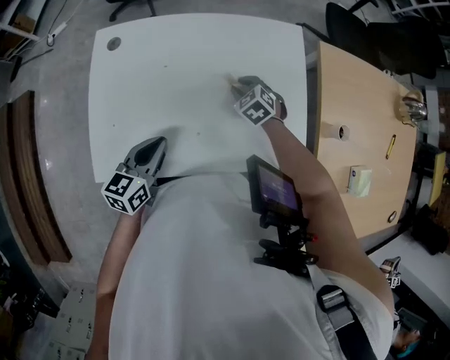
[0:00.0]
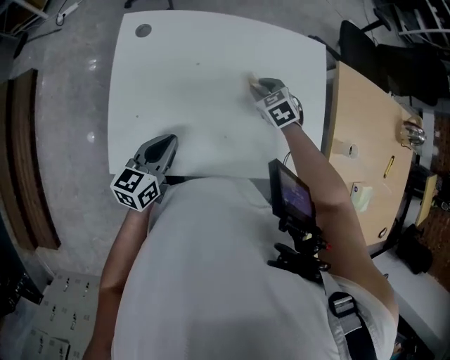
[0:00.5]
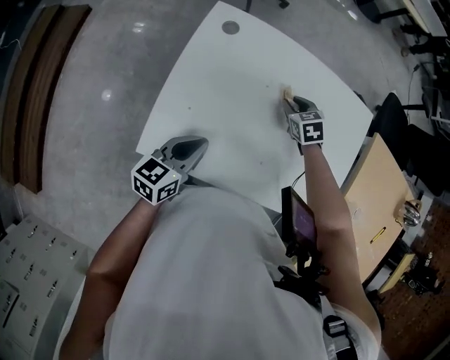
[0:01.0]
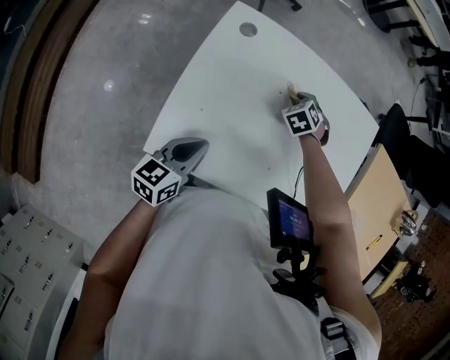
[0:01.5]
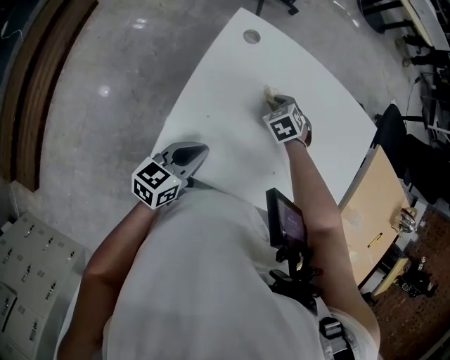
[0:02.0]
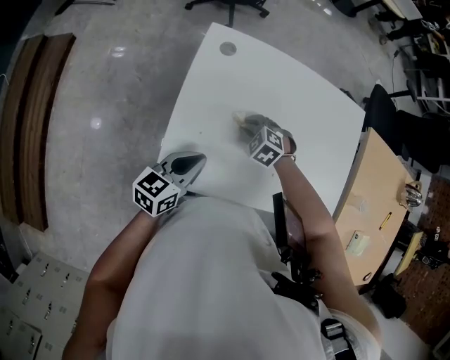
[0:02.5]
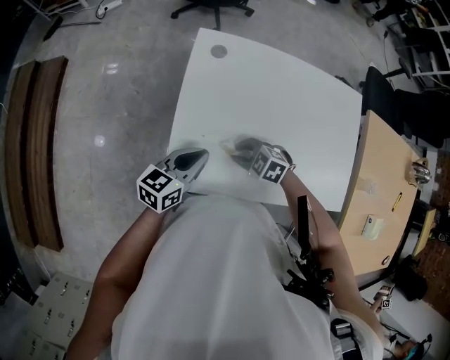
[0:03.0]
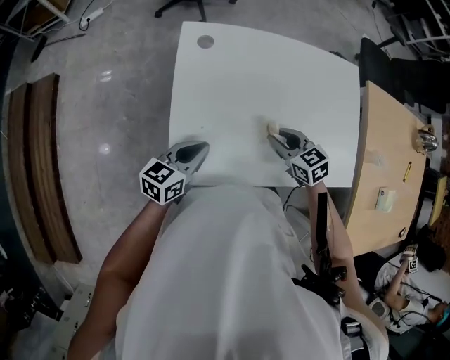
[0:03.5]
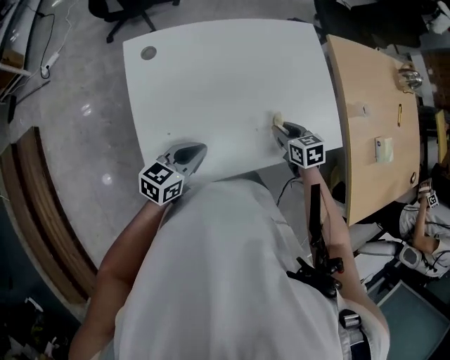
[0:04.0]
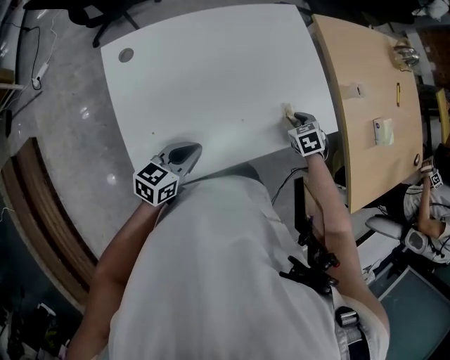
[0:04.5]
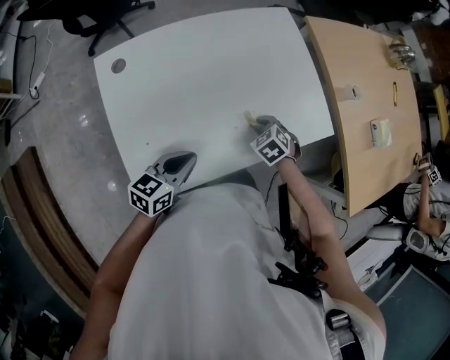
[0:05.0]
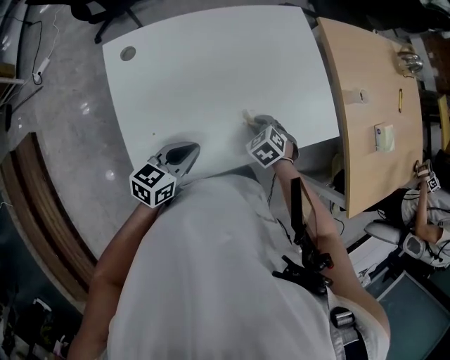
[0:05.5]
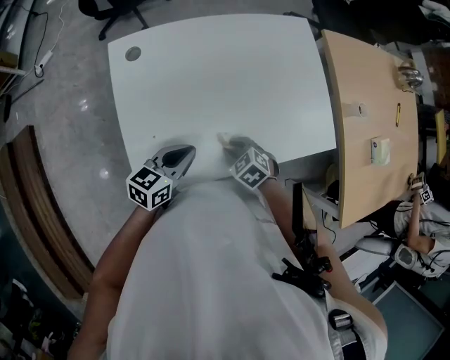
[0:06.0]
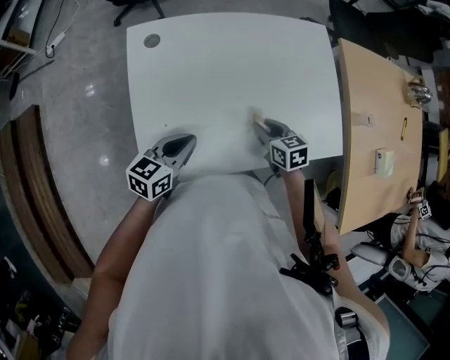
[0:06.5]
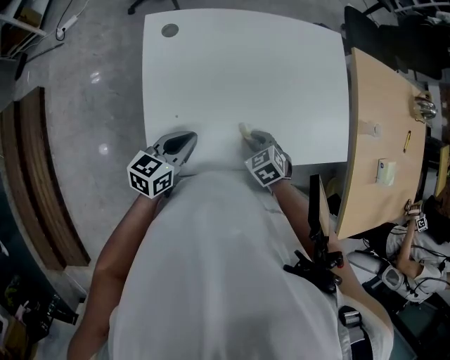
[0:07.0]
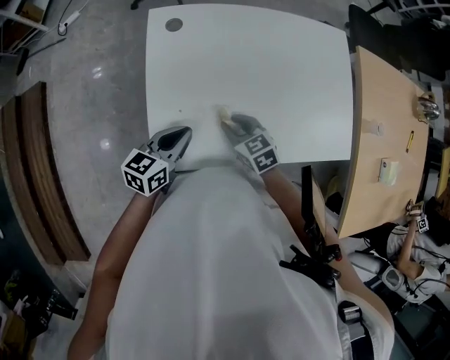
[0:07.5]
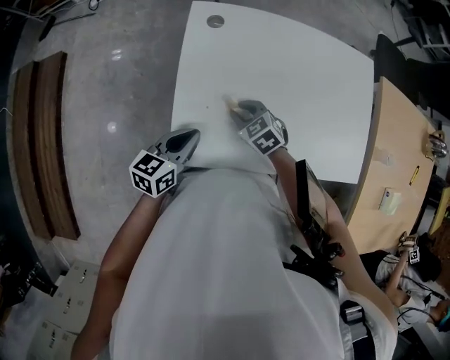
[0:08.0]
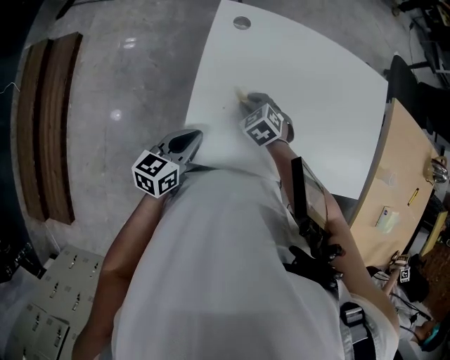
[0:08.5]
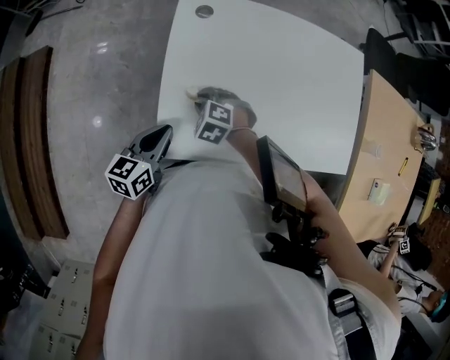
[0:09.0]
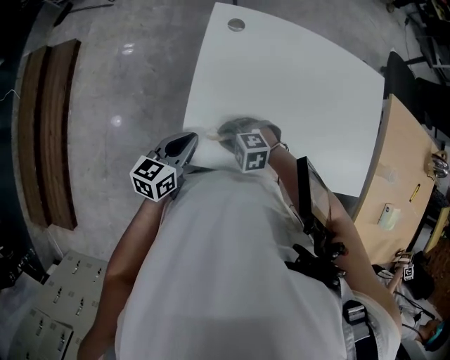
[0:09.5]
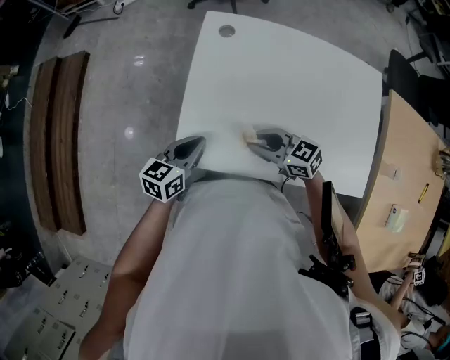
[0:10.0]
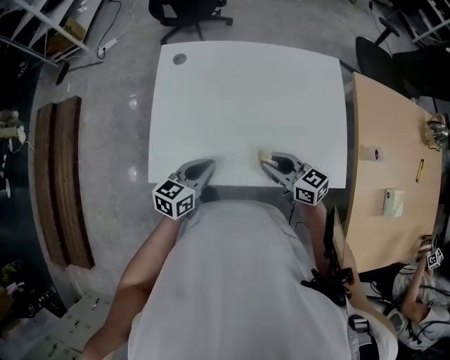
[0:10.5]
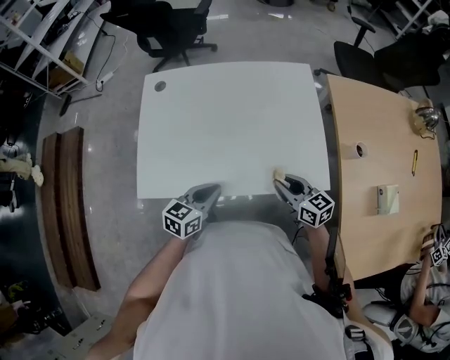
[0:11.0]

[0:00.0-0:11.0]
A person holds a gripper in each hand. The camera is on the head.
0:00.0 to 0:02.0: The left gripper heads to the left, covering about 15 cm. Meanwhile the right gripper goes approximately 25 cm to the left.
0:02.0 to 0:03.5: The right gripper ends up approximately 20 cm from where it was, and rotates approximately 40 degrees.
0:03.5 to 0:05.5: The right gripper turns by some 40 degrees. The left gripper changes place by about 10 cm, and swivels some 20 degrees.
0:05.5 to 0:07.5: The left gripper moves roughly 10 cm. Meanwhile the right gripper ends up approximately 20 cm from where it was, and swivels about 30 degrees.
0:07.5 to 0:09.0: The two grippers go some 10 cm to the left. The right gripper rolls counterclockwise, seen from behind, by roughly 40 degrees.
0:09.0 to 0:11.0: The right gripper changes place by roughly 40 cm, and tilts its fingers roughly 40 degrees upward; the left gripper changes place by about 30 cm.

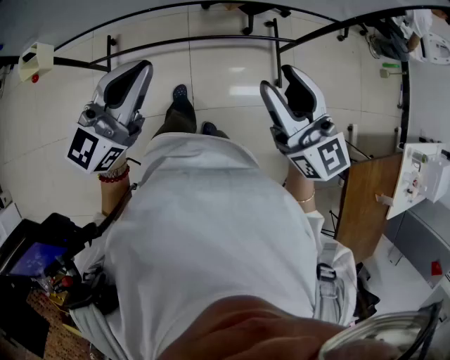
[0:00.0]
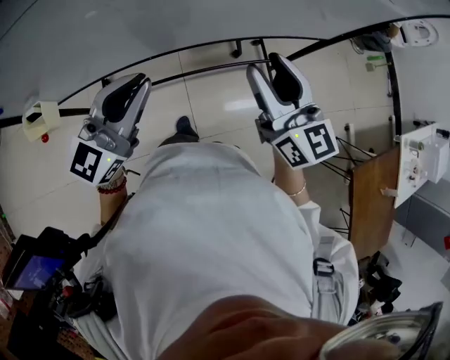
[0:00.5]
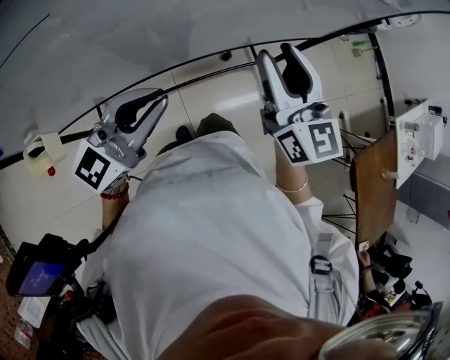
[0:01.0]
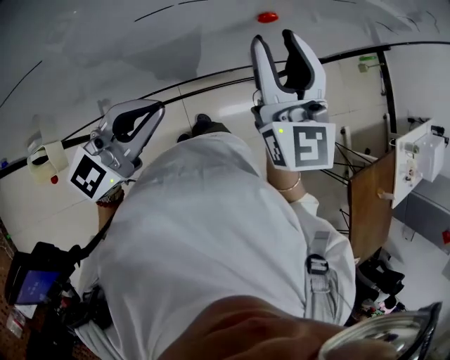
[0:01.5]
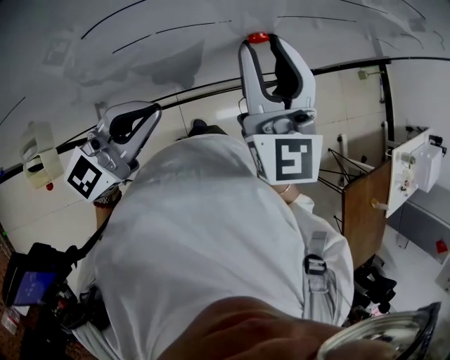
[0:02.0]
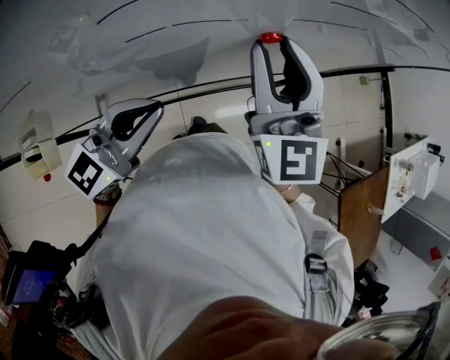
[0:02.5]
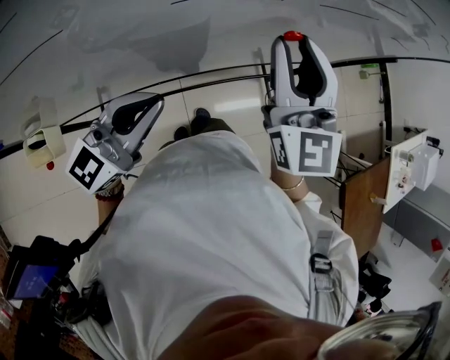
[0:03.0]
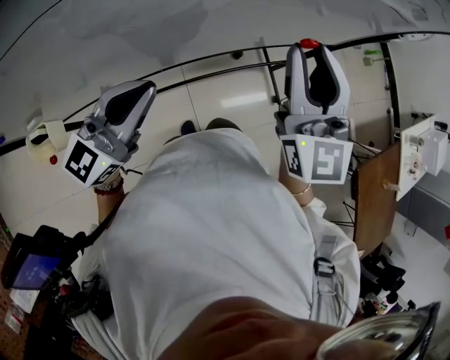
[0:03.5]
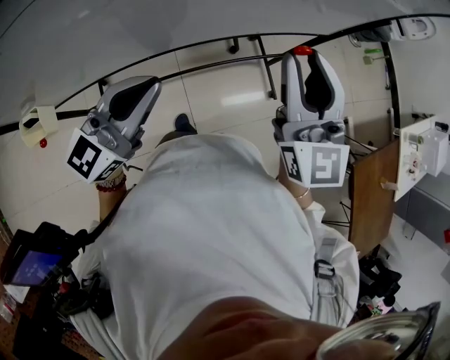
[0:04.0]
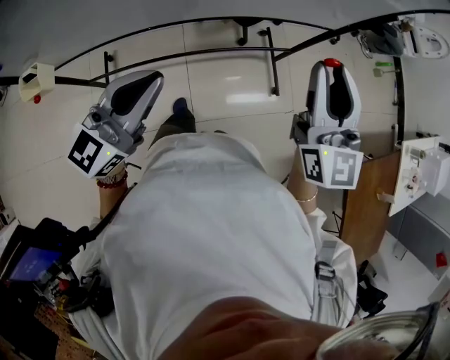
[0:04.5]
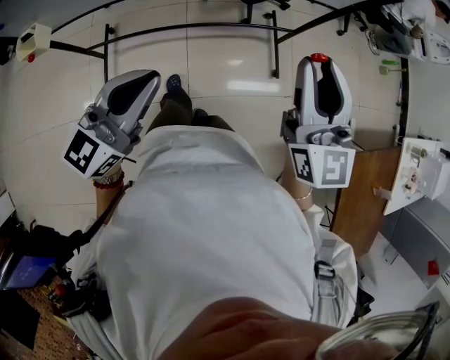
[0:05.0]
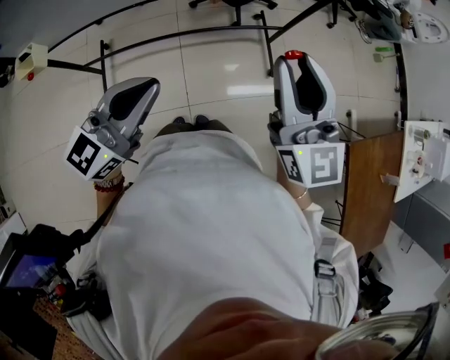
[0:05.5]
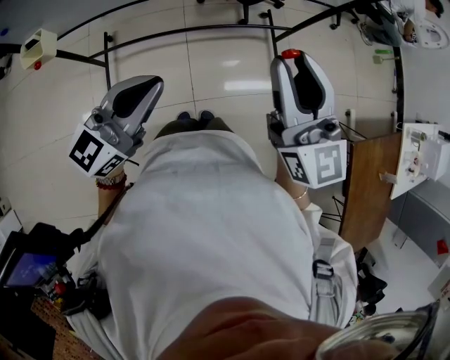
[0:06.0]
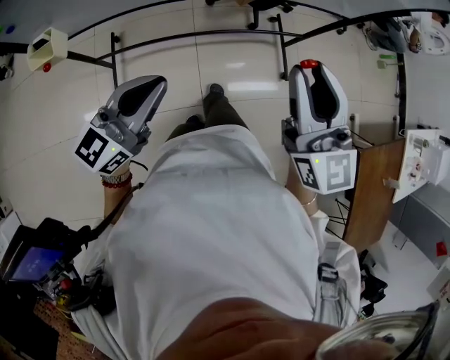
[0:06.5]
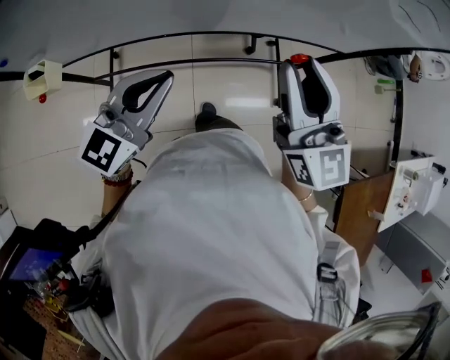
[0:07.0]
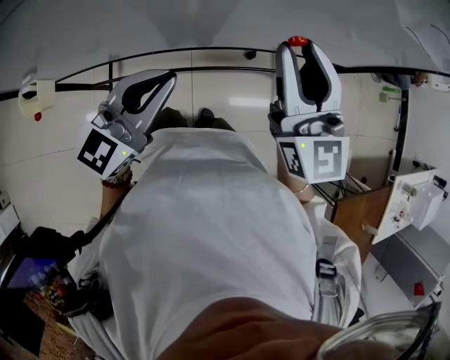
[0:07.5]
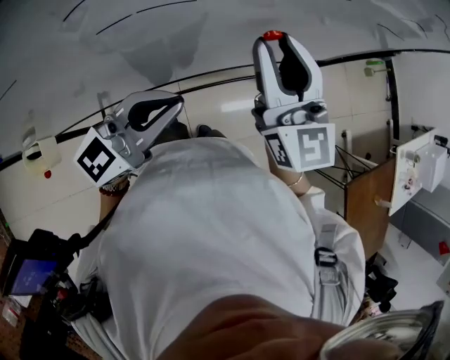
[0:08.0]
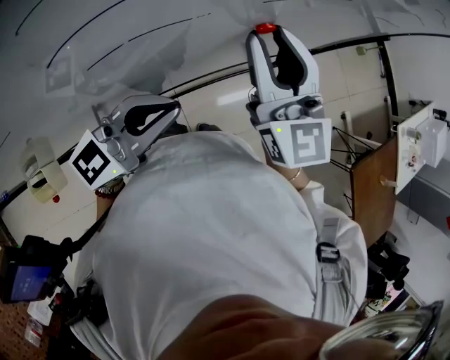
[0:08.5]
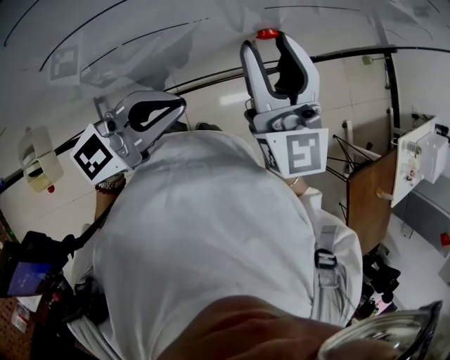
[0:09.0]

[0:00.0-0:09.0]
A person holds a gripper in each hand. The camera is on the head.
0:00.0 to 0:02.0: The right gripper heads forward, to the left and upward, covering some 25 cm, and changes its angle by some 30 degrees; the left gripper goes about 10 cm forward and to the left.
0:02.0 to 0:04.5: The left gripper shifts approximately 10 cm backward and to the right. Meanwhile the right gripper shifts about 20 cm to the right.
0:04.5 to 0:07.0: The right gripper travels to the left by roughly 10 cm, and moves some 15 cm backward and comes back; the left gripper moves about 10 cm backward and comes back.
0:07.0 to 0:09.0: Both grippers move forward, about 5 cm. The left gripper changes its angle by approximately 30 degrees.

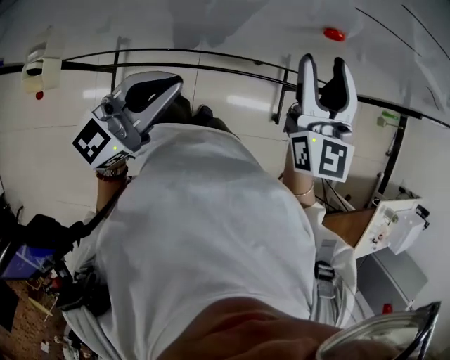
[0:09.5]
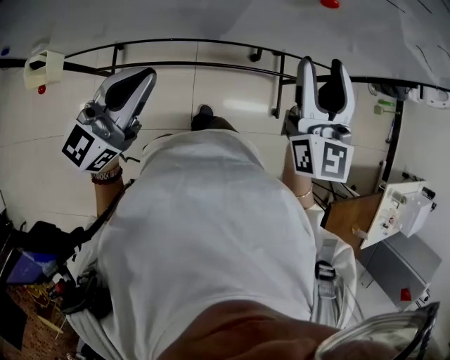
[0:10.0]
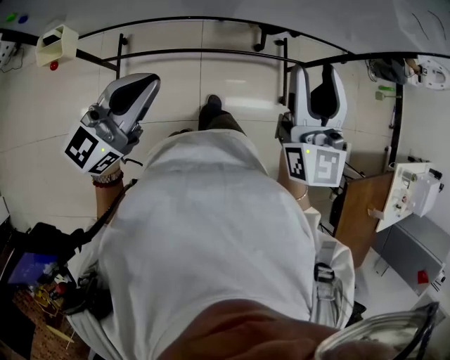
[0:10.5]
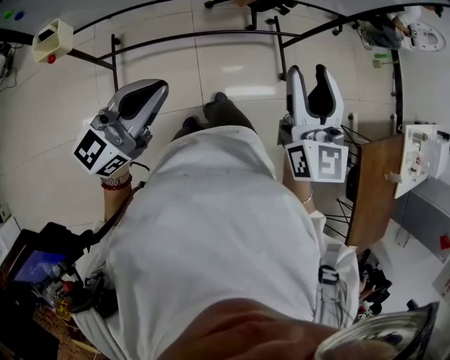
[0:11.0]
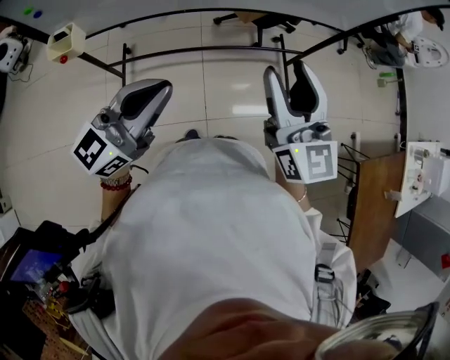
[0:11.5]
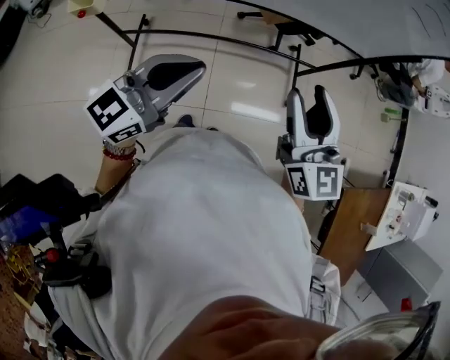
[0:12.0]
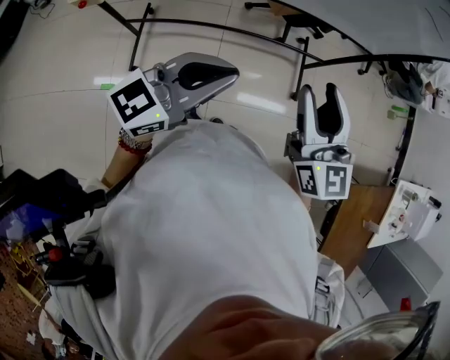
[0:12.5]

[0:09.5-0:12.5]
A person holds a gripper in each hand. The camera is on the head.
0:09.5 to 0:11.0: Both grippers travel together backward, some 25 cm.
0:11.0 to 0:12.5: The left gripper shifts some 15 cm to the right.

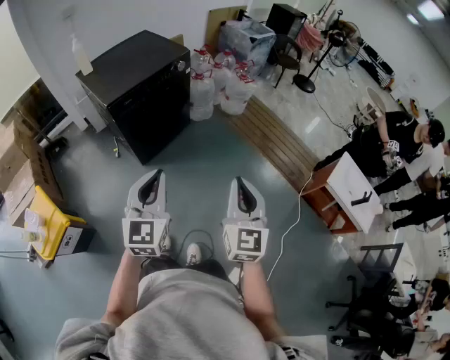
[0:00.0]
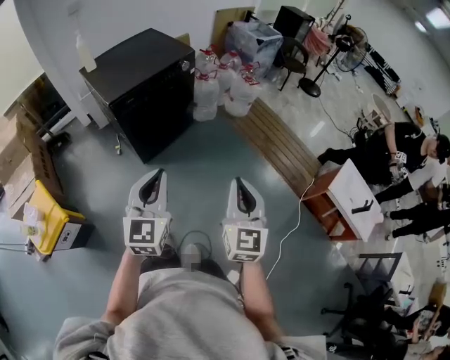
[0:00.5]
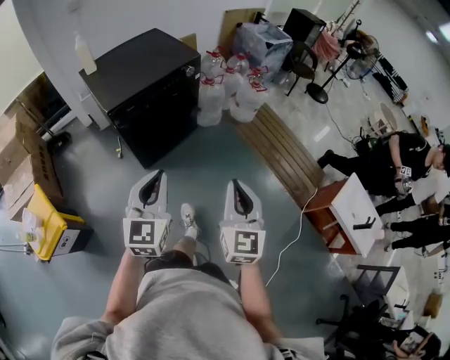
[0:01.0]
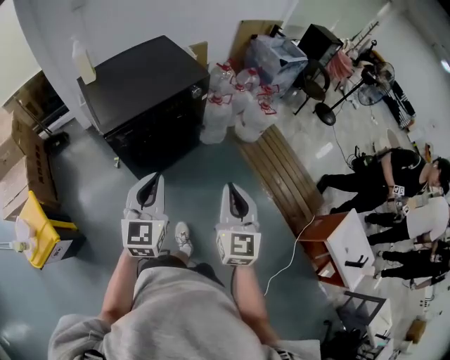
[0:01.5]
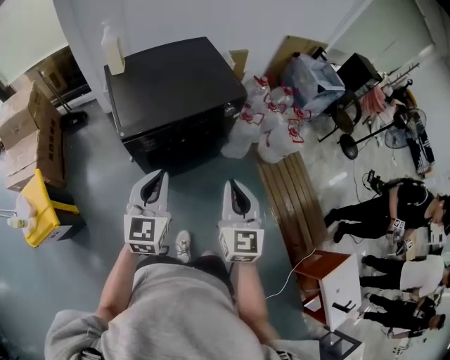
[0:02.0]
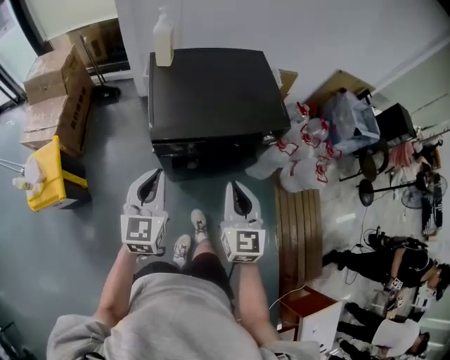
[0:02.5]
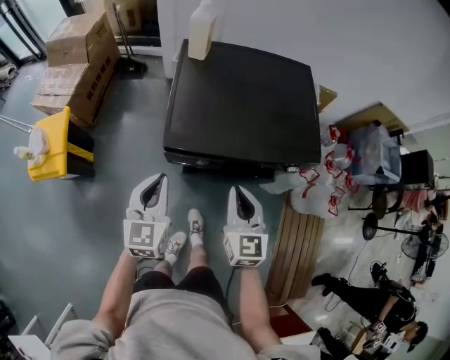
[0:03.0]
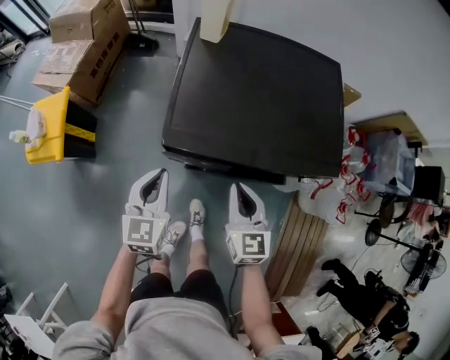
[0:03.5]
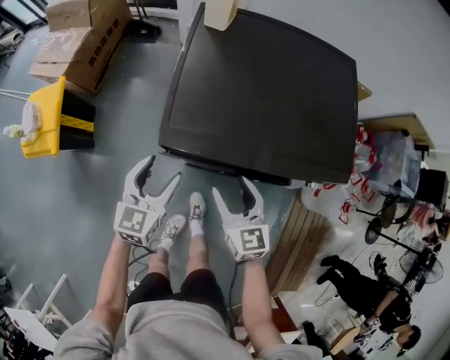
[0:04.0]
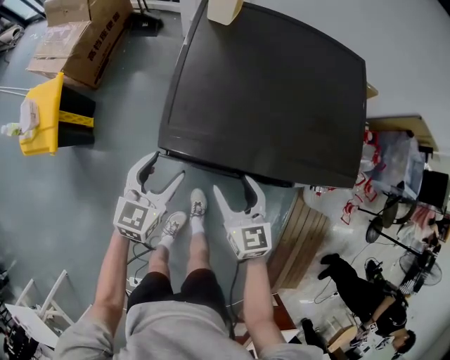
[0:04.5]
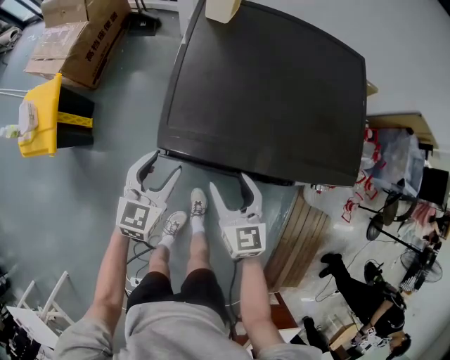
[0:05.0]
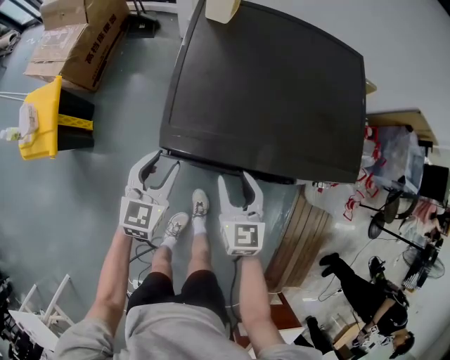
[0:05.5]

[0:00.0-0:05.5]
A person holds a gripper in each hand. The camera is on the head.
0:00.0 to 0:02.0: The grippers both shift forward by approximately 40 cm. The right gripper changes its angle by approximately 30 degrees. Meanwhile the left gripper changes its angle by approximately 20 degrees.
0:02.0 to 0:03.5: The left gripper shifts by some 25 cm, and changes its angle by approximately 30 degrees; the right gripper moves some 30 cm, and rotates some 40 degrees.
0:03.5 to 0:05.5: The grippers both shift downward by about 5 cm. The right gripper opens its fingers, while the left gripper opens.
